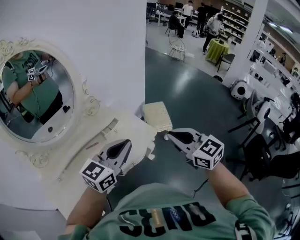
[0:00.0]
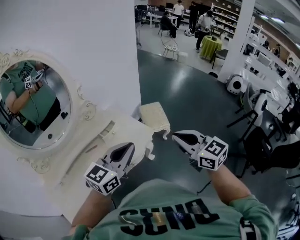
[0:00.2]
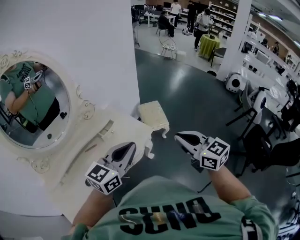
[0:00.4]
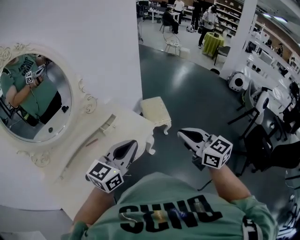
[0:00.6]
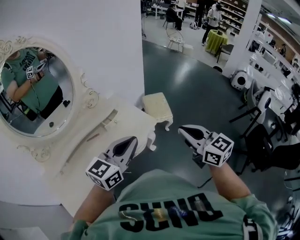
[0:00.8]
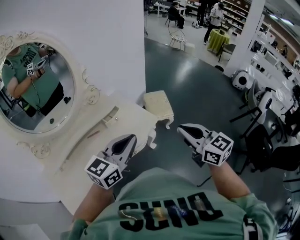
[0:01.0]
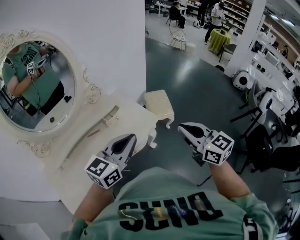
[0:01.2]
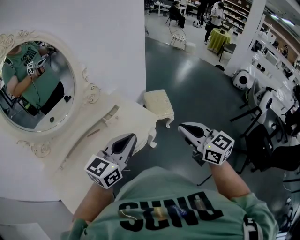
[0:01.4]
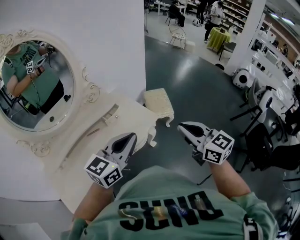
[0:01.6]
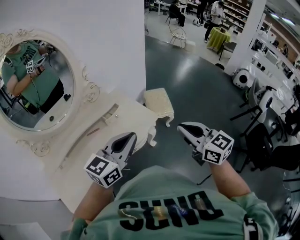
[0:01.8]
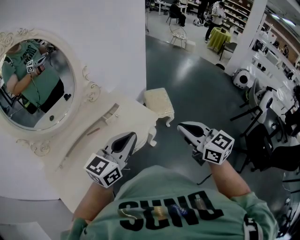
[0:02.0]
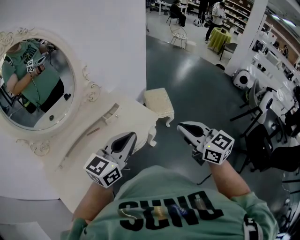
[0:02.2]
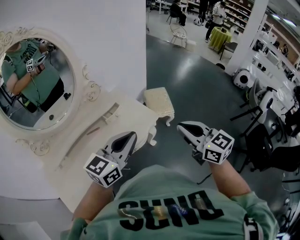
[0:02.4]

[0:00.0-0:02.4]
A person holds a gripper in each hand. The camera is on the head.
0:00.0 to 0:01.2: The right gripper ends up roughly 5 cm from where it was.
0:01.2 to 0:02.4: The two grippers keep their place.

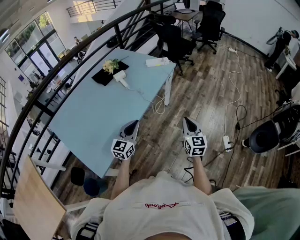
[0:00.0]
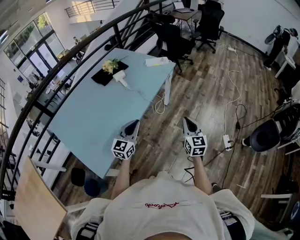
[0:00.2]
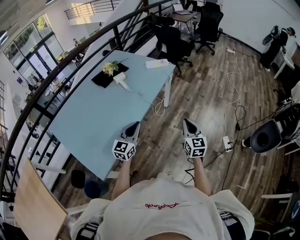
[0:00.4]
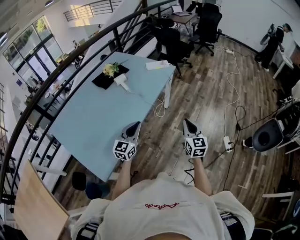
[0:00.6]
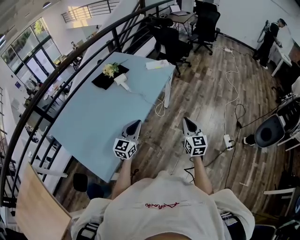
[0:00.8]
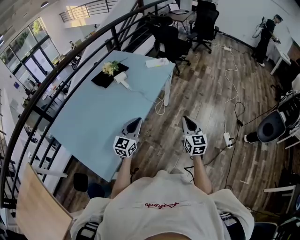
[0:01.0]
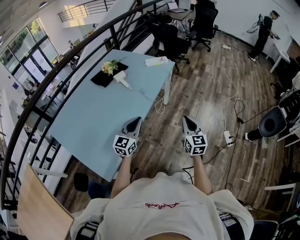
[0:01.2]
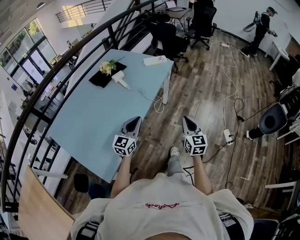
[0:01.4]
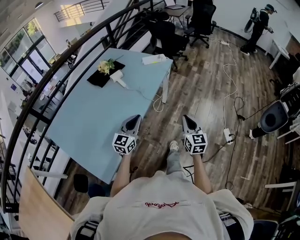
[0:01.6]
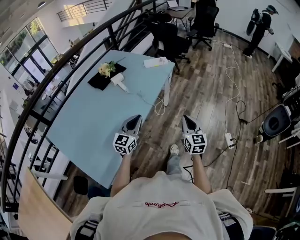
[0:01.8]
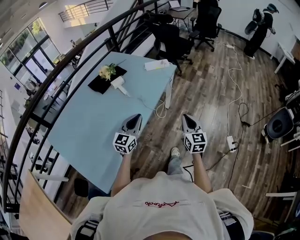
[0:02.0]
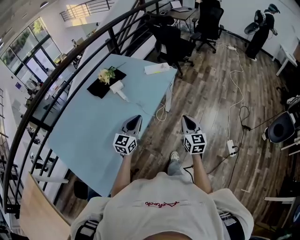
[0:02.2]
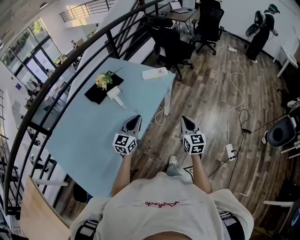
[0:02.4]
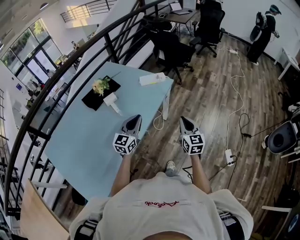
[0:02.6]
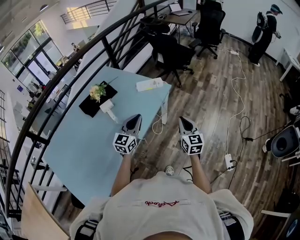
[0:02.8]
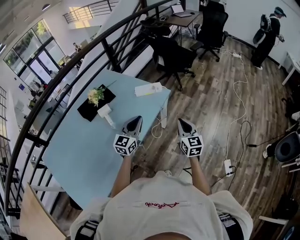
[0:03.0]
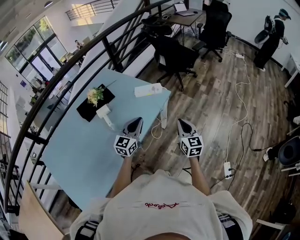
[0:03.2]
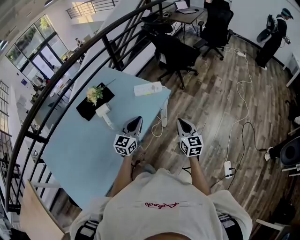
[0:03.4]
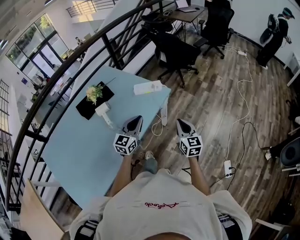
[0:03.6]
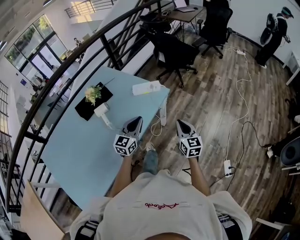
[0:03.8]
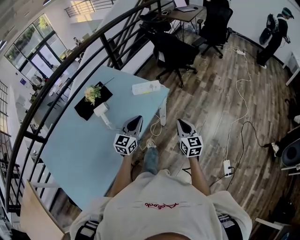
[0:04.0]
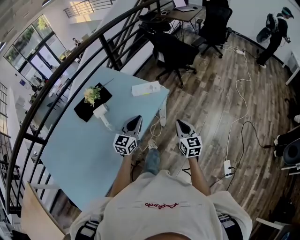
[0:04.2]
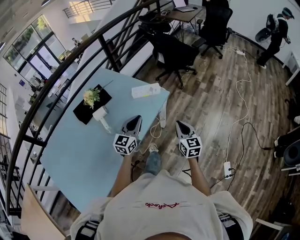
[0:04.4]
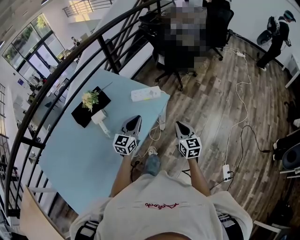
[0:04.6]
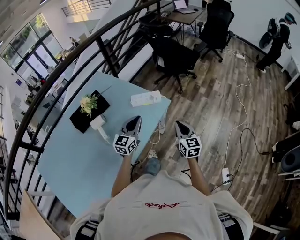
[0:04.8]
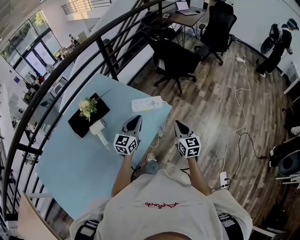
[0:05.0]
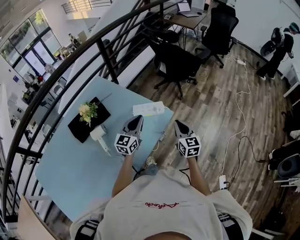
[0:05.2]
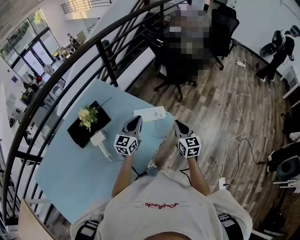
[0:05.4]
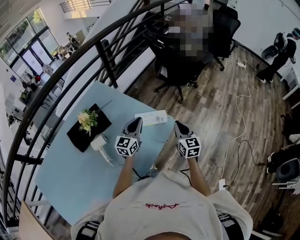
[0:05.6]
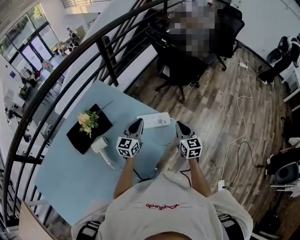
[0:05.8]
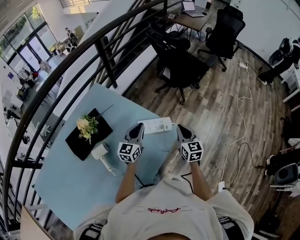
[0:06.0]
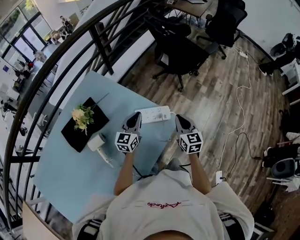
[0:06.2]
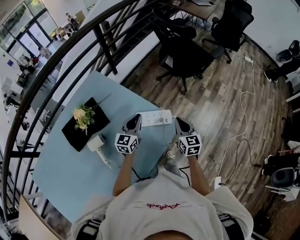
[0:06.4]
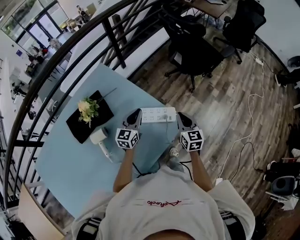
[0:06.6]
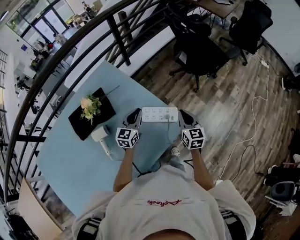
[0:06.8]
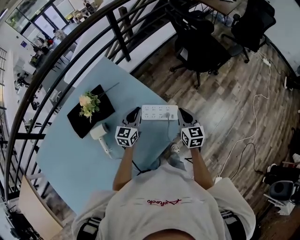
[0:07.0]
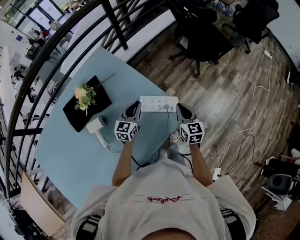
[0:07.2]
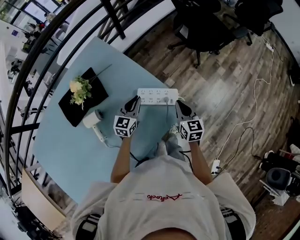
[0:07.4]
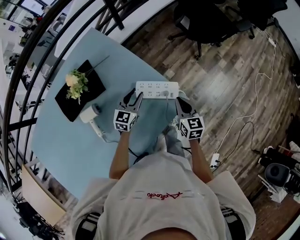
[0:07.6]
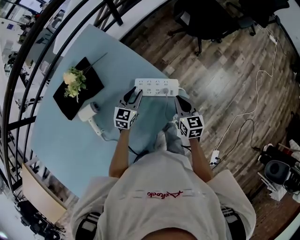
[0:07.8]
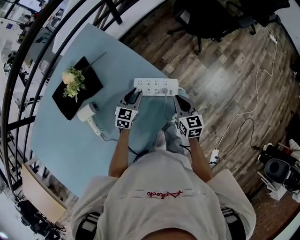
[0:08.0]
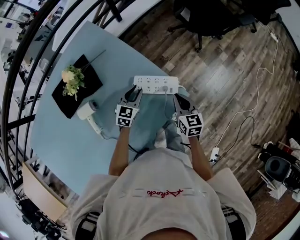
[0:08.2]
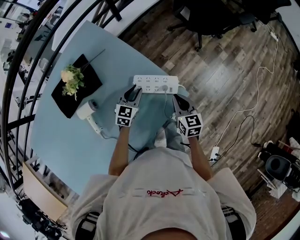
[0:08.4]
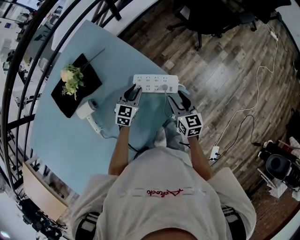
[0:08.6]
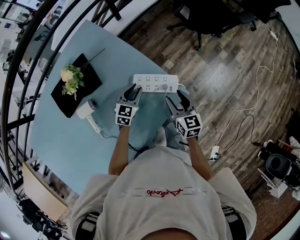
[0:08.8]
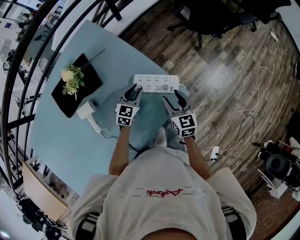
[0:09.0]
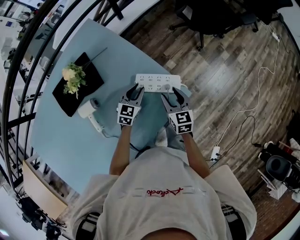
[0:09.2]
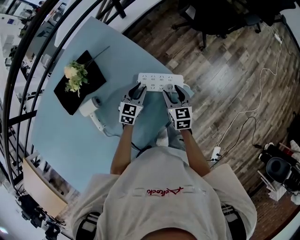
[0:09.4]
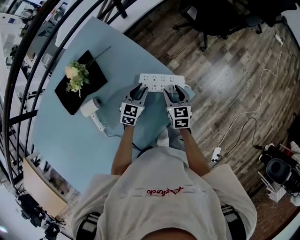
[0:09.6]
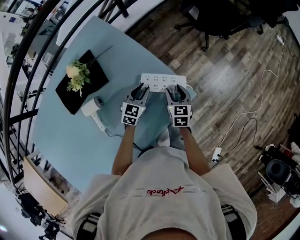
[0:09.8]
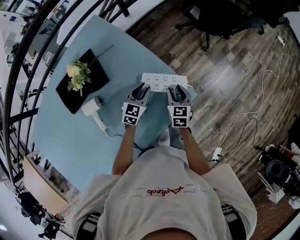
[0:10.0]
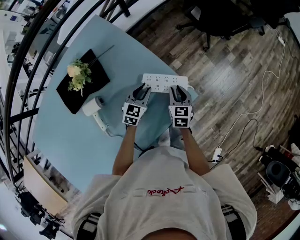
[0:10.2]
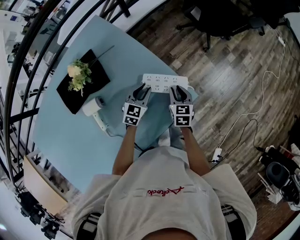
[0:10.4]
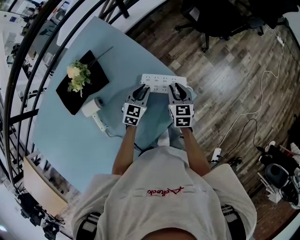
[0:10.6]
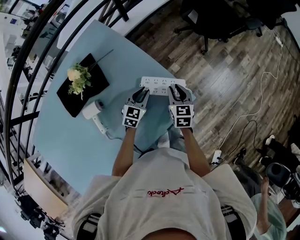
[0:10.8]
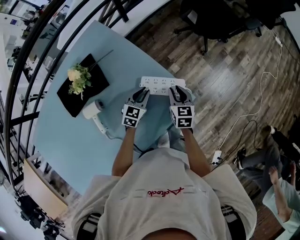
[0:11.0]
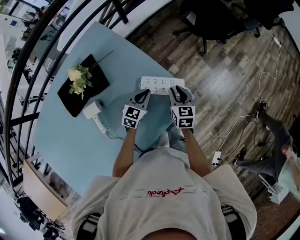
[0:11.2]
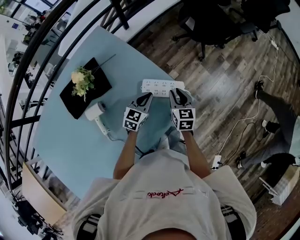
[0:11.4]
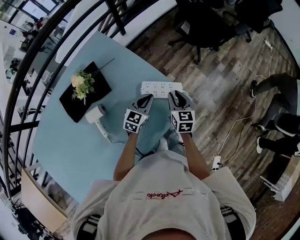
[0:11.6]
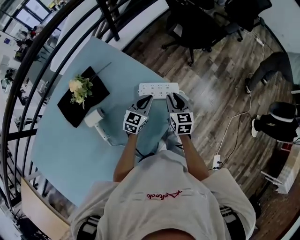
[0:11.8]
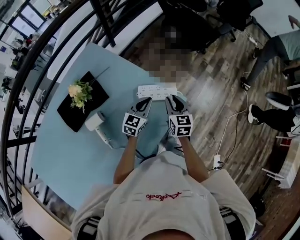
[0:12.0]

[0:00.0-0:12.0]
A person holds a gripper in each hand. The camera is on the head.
0:00.0 to 0:01.6: The left gripper ends up about 5 cm from where it was.
0:01.6 to 0:03.0: The grippers both shift forward by about 35 cm.
0:03.0 to 0:04.4: The grippers both shift forward by approximately 5 cm.
0:04.4 to 0:06.0: Both grippers move forward, about 30 cm.
0:06.0 to 0:07.6: Both grippers travel together downward, roughly 15 cm. The left gripper opens up.
0:07.6 to 0:09.0: The right gripper opens its fingers.
0:09.0 to 0:10.4: The right gripper moves downward, some 5 cm, and closes its fingers.
0:10.4 to 0:12.0: Both grippers travel together upward, roughly 10 cm. The left gripper closes its fingers.

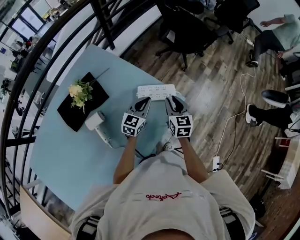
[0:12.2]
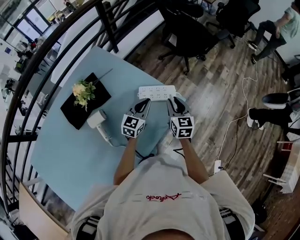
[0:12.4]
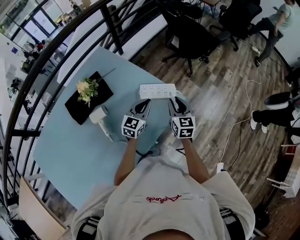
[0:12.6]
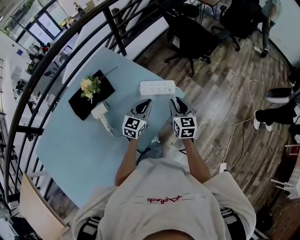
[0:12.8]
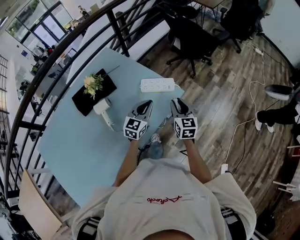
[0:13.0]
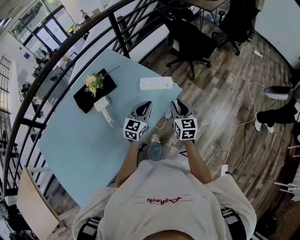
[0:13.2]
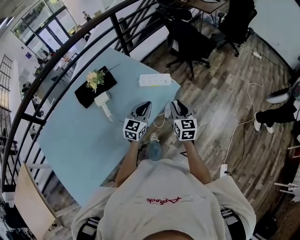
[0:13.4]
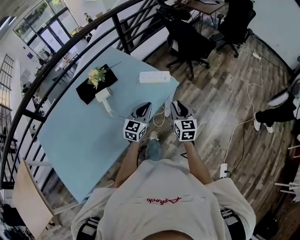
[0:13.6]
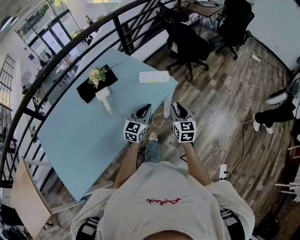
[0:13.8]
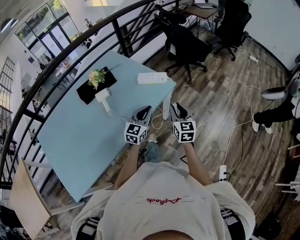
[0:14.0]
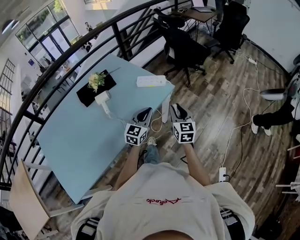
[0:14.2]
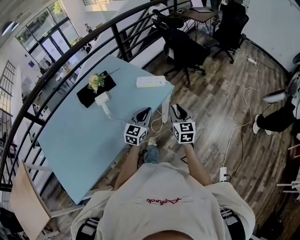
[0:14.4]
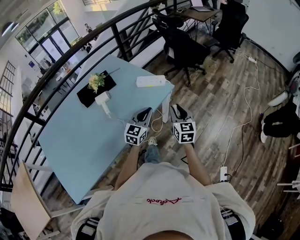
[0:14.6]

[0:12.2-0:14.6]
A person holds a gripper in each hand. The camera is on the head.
0:12.2 to 0:13.4: The left gripper heads backward, covering about 20 cm. Meanwhile the right gripper is displaced backward and to the right by some 20 cm.
0:13.4 to 0:14.6: The grippers both shift backward by some 10 cm.

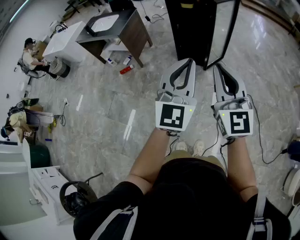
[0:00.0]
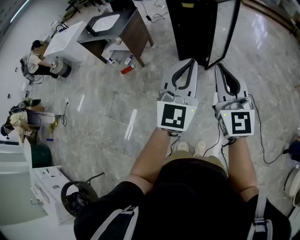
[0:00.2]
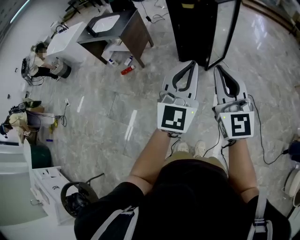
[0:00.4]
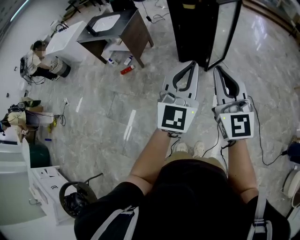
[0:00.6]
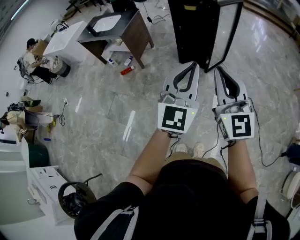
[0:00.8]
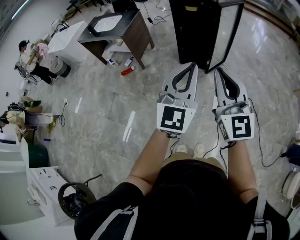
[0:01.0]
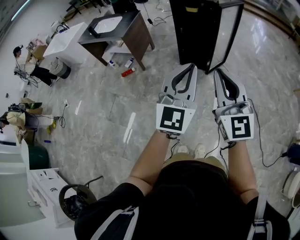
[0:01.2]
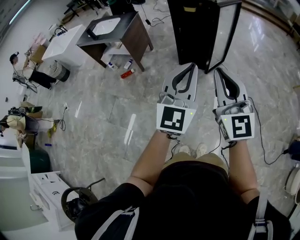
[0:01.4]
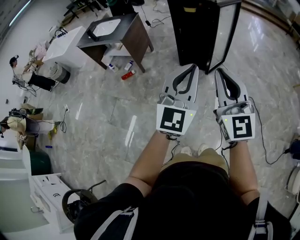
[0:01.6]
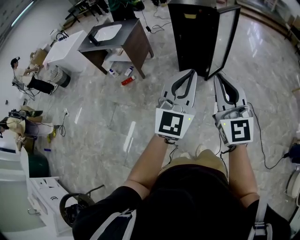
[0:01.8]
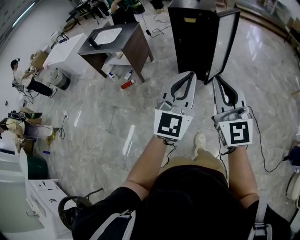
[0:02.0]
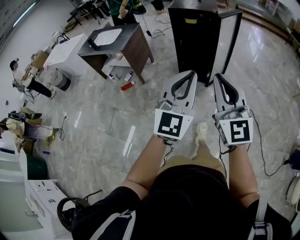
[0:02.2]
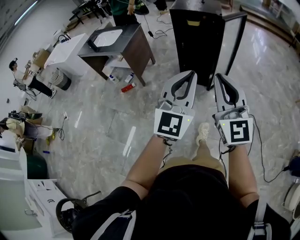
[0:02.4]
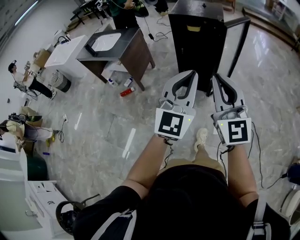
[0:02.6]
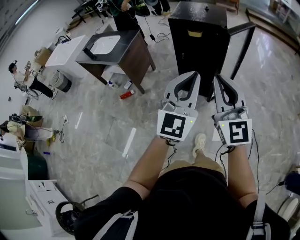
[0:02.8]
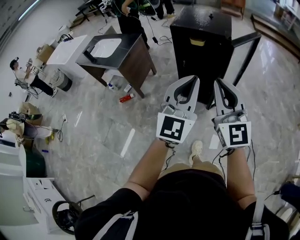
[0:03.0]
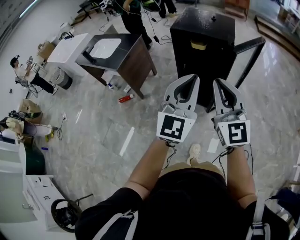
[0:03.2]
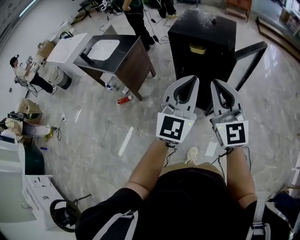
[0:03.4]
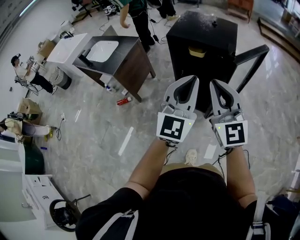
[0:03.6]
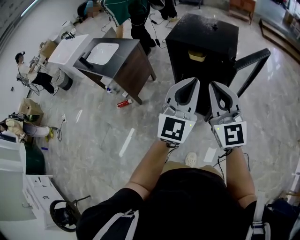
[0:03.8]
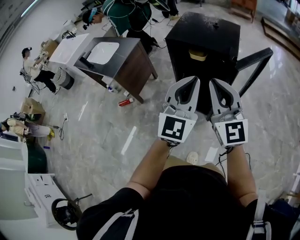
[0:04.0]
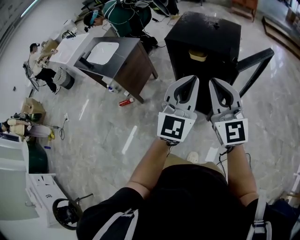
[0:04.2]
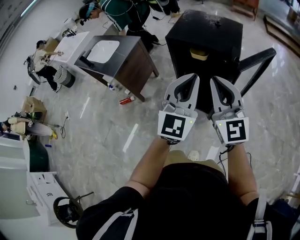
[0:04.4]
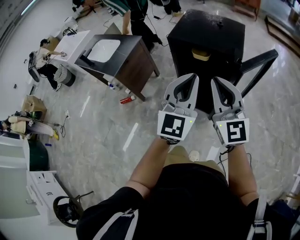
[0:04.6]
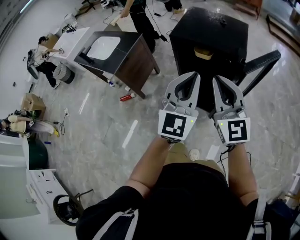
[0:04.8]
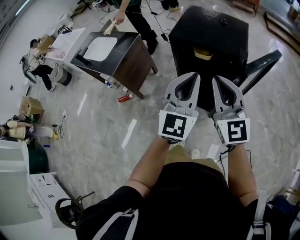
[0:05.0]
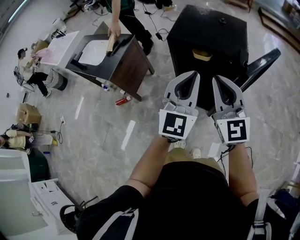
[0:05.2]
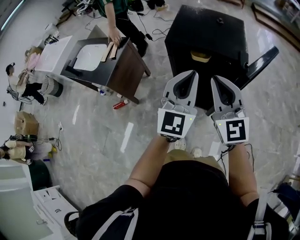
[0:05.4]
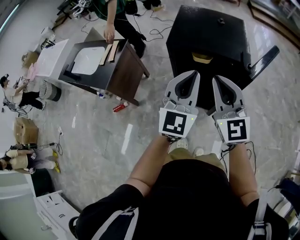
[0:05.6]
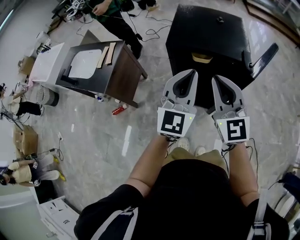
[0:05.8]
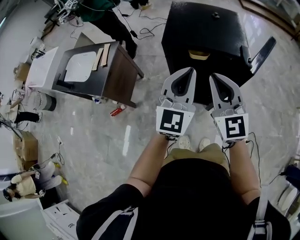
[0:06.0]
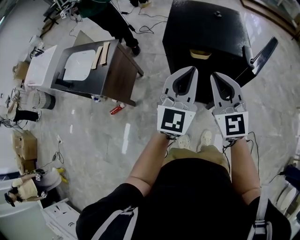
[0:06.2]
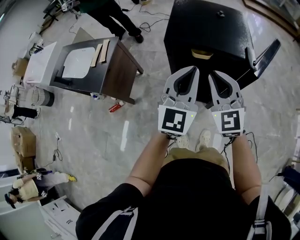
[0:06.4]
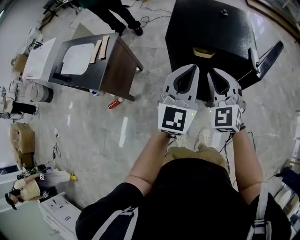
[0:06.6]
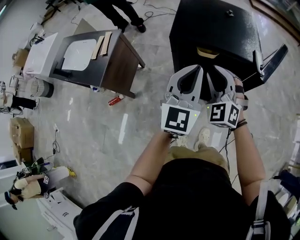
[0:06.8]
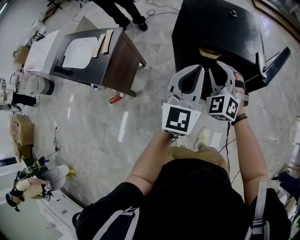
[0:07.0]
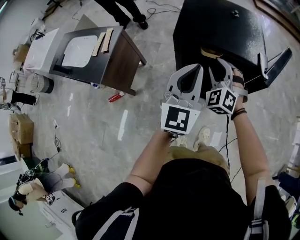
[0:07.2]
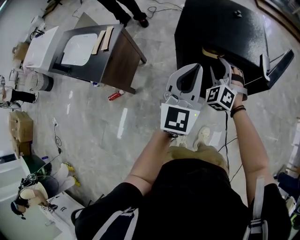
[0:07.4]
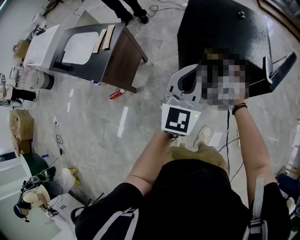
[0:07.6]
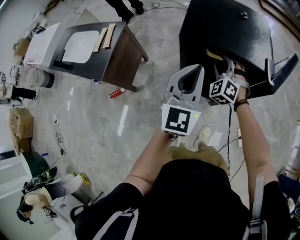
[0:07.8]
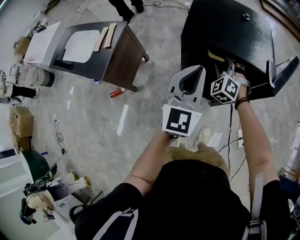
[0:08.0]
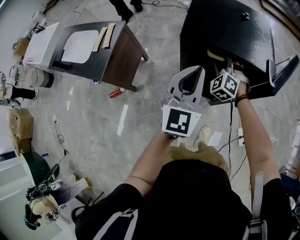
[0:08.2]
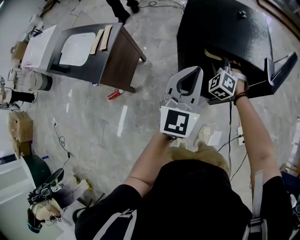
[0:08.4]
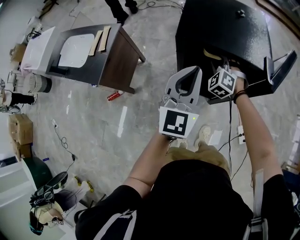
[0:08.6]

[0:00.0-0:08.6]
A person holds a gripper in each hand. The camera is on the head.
0:00.0 to 0:01.4: The right gripper goes approximately 5 cm to the left.
0:01.4 to 0:02.8: The two grippers go roughly 30 cm forward.
0:02.8 to 0:04.4: Both grippers travel together forward, approximately 30 cm.
0:04.4 to 0:05.8: Both grippers move forward and to the left, approximately 15 cm.
0:05.8 to 0:07.2: The right gripper shifts about 20 cm downward and forward, rotates around the line of its fingers by some 40 degrees, counterclockwise from behind, and opens; the left gripper shifts about 5 cm forward.
0:07.2 to 0:08.6: The right gripper is displaced downward and forward by about 10 cm.
